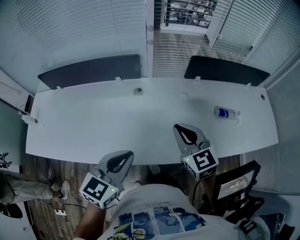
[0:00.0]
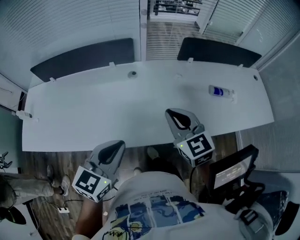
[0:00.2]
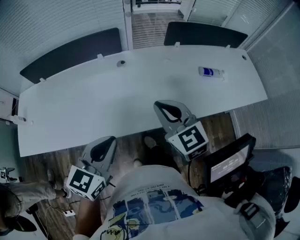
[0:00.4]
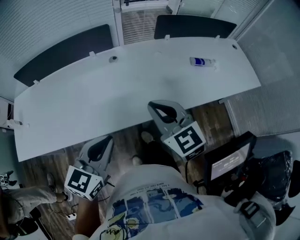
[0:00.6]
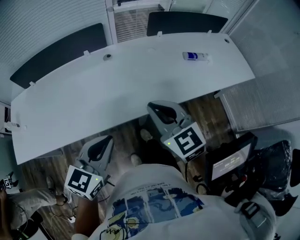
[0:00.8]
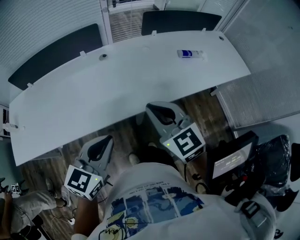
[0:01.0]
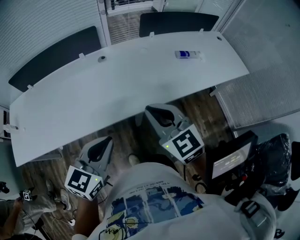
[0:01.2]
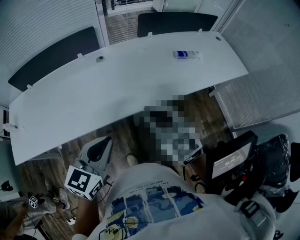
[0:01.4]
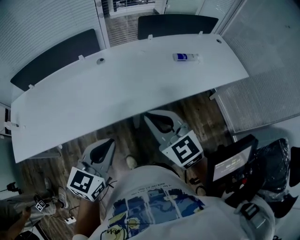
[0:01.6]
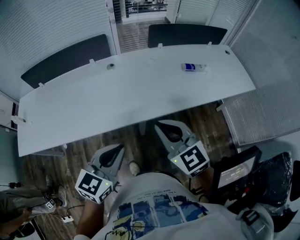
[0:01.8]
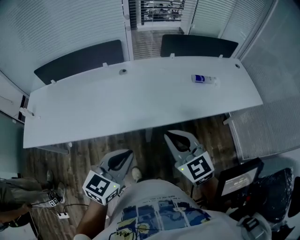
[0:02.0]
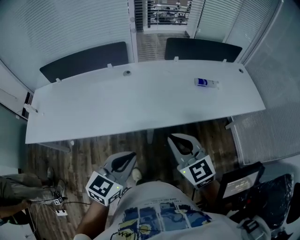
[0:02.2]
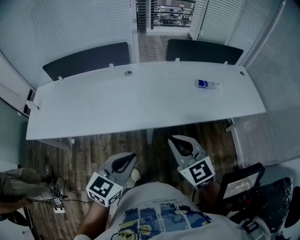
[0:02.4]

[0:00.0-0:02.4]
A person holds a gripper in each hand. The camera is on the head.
0:00.0 to 0:01.2: The grippers both shift backward by approximately 20 cm.
0:01.2 to 0:02.4: Both grippers travel together to the right and backward, some 10 cm.

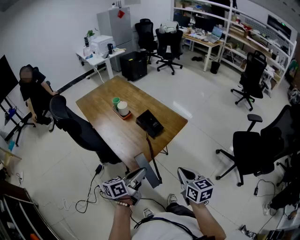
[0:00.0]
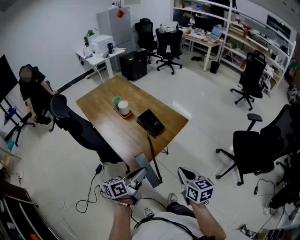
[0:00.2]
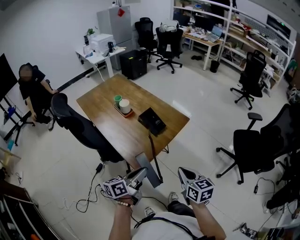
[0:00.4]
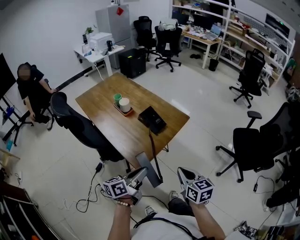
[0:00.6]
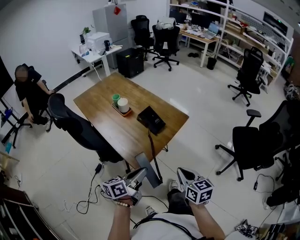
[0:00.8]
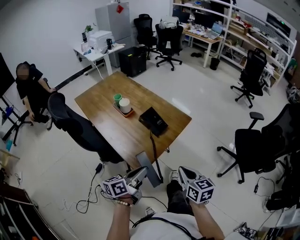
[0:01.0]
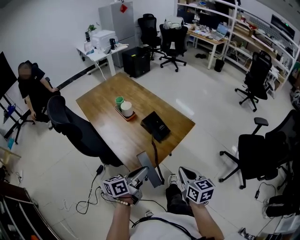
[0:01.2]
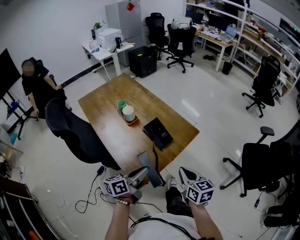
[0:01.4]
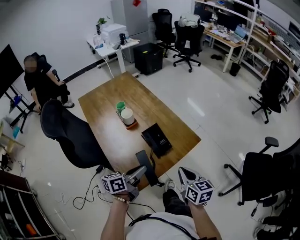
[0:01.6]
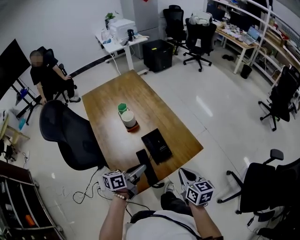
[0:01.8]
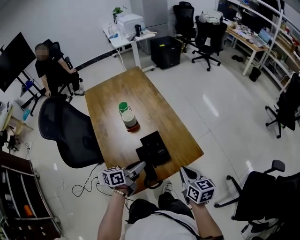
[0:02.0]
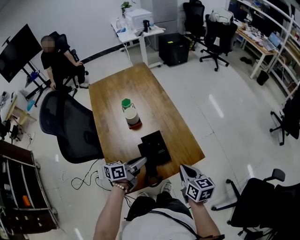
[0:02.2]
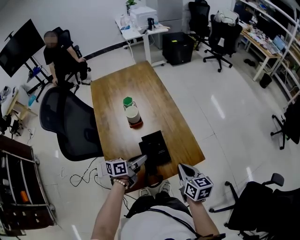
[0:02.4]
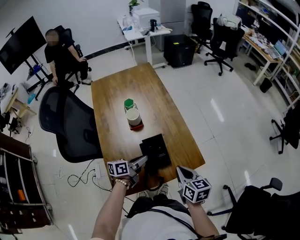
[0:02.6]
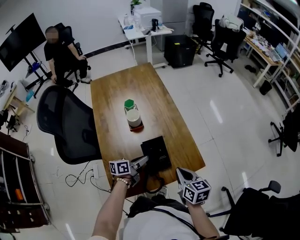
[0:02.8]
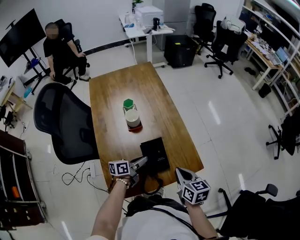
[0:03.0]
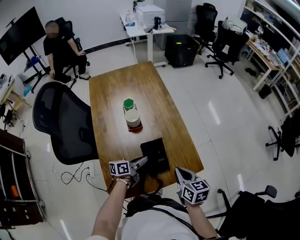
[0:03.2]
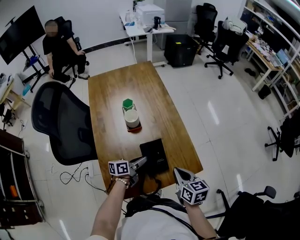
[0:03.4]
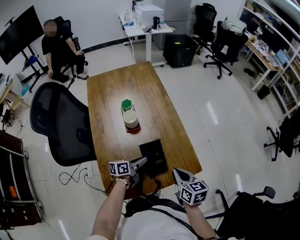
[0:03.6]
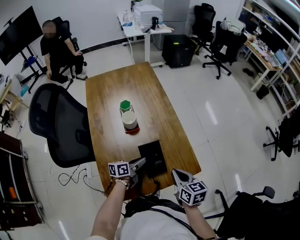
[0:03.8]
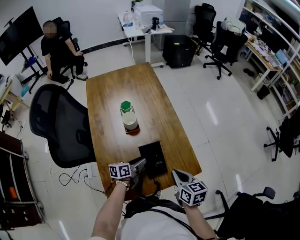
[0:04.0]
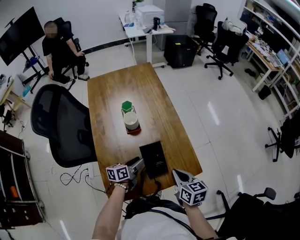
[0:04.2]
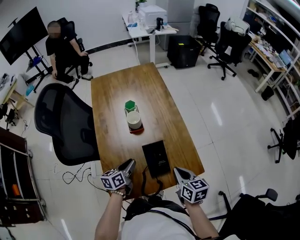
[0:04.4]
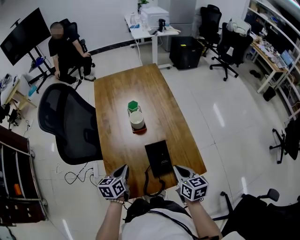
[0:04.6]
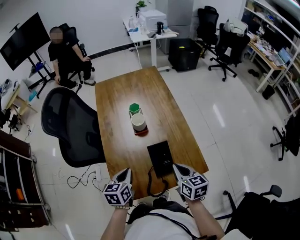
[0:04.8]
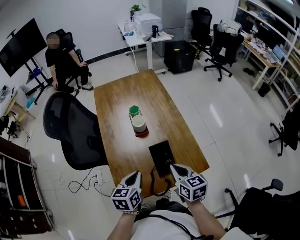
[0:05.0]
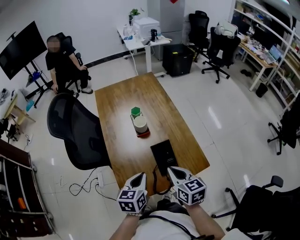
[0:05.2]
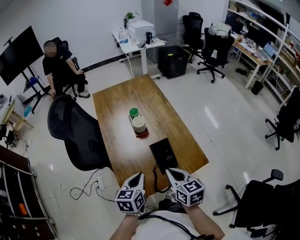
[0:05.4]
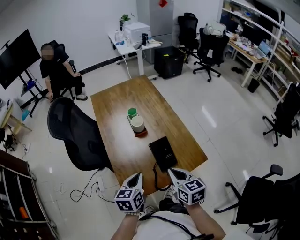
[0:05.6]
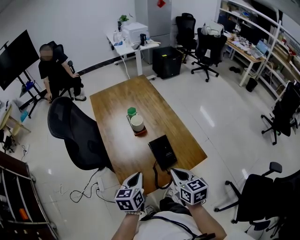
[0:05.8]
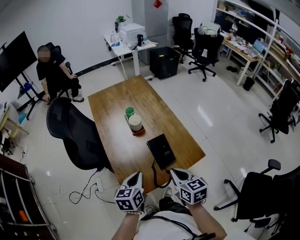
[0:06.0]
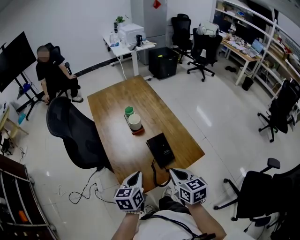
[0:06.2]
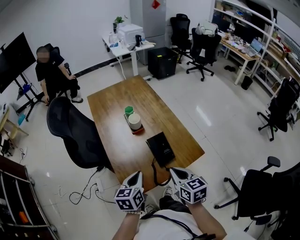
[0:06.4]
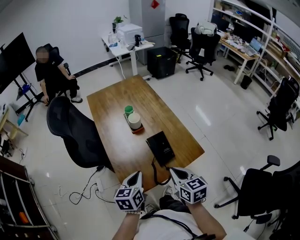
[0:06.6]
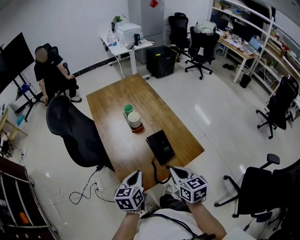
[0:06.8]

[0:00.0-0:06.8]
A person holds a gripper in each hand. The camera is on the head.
0:00.0 to 0:01.4: Both grippers travel together forward, some 10 cm.
0:01.4 to 0:02.8: The right gripper heads forward, covering some 20 cm, and swivels some 20 degrees; the left gripper heads forward and downward, covering roughly 25 cm.
0:02.8 to 0:04.0: The left gripper shifts by about 5 cm, and opens.
0:04.0 to 0:05.4: The right gripper heads to the left and upward, covering about 15 cm; the left gripper goes some 25 cm upward, backward and to the left, turns by roughly 30 degrees, and closes its fingers.
0:05.4 to 0:06.8: The right gripper shifts approximately 5 cm backward.

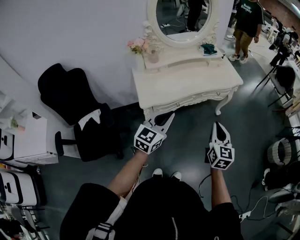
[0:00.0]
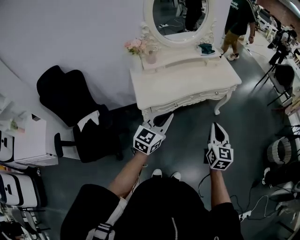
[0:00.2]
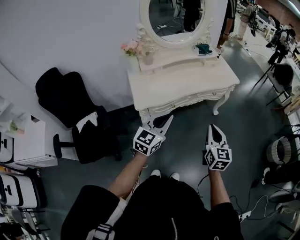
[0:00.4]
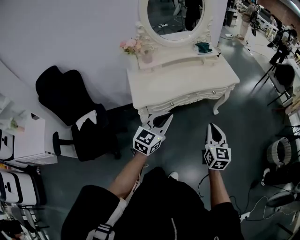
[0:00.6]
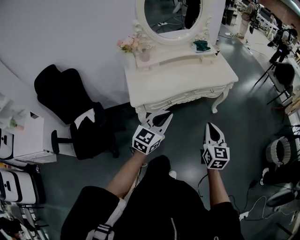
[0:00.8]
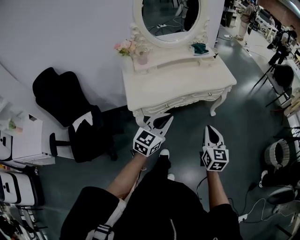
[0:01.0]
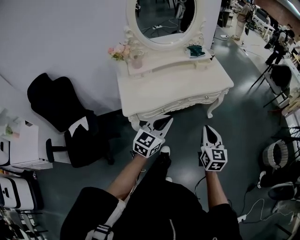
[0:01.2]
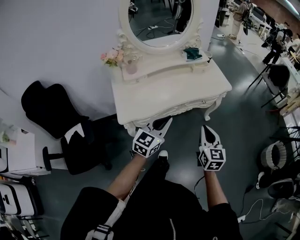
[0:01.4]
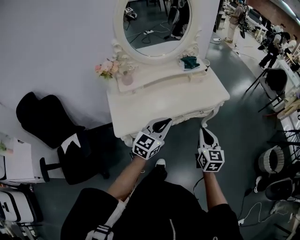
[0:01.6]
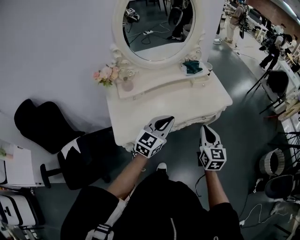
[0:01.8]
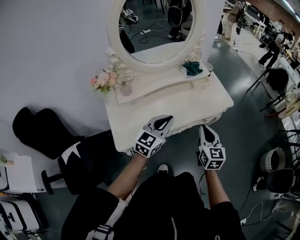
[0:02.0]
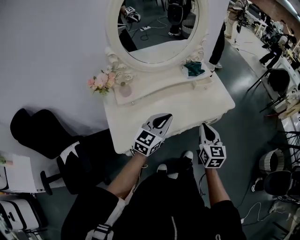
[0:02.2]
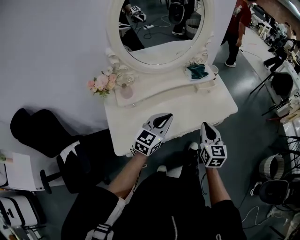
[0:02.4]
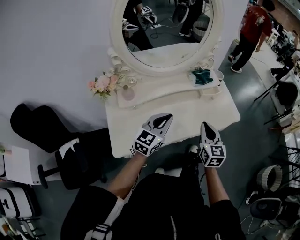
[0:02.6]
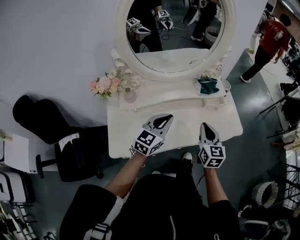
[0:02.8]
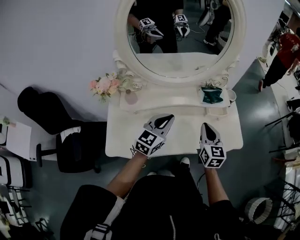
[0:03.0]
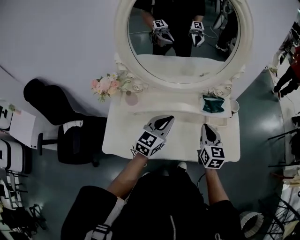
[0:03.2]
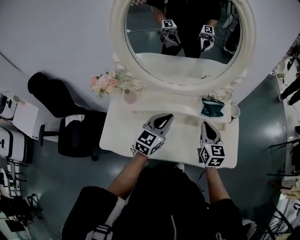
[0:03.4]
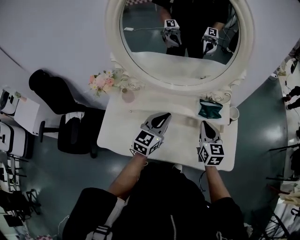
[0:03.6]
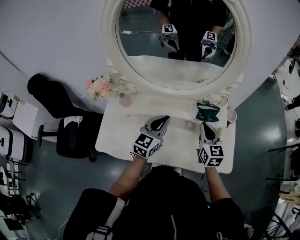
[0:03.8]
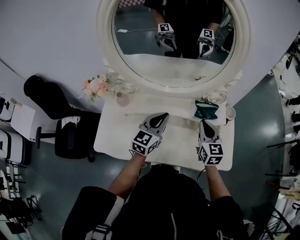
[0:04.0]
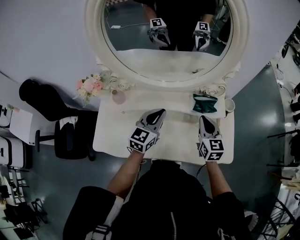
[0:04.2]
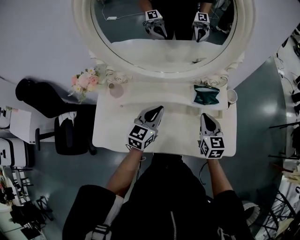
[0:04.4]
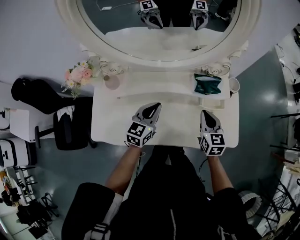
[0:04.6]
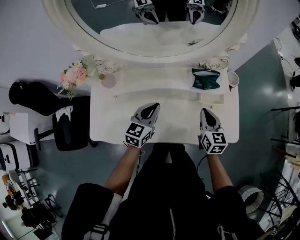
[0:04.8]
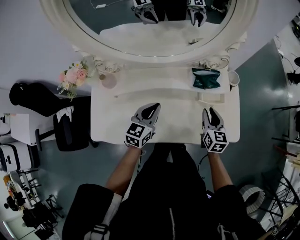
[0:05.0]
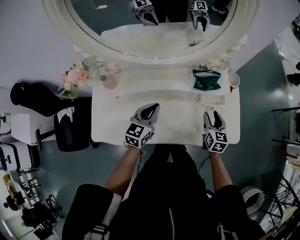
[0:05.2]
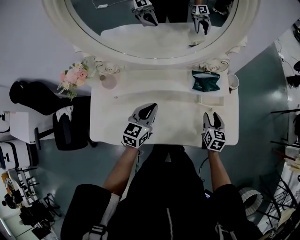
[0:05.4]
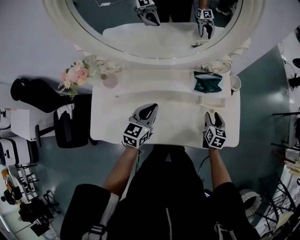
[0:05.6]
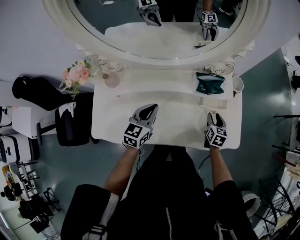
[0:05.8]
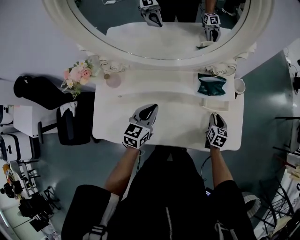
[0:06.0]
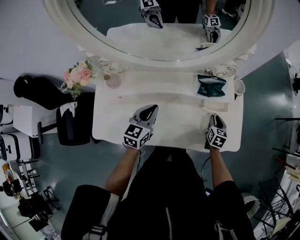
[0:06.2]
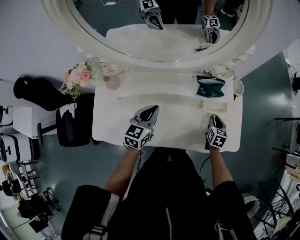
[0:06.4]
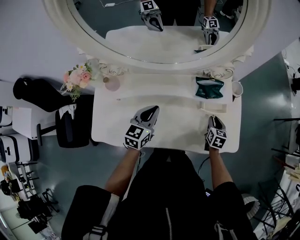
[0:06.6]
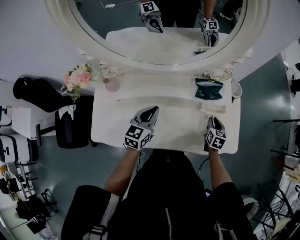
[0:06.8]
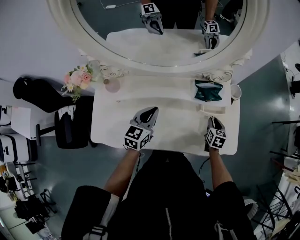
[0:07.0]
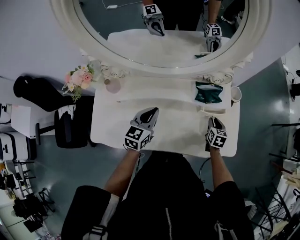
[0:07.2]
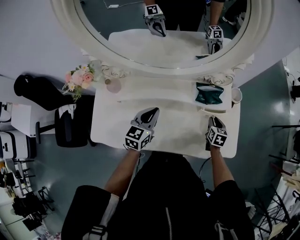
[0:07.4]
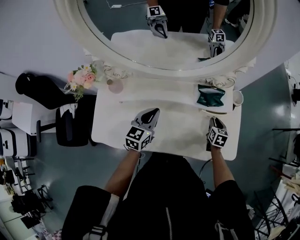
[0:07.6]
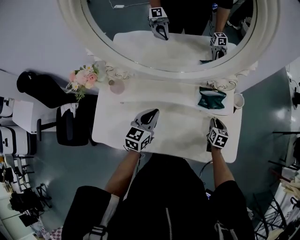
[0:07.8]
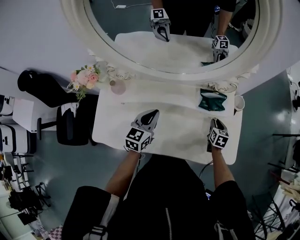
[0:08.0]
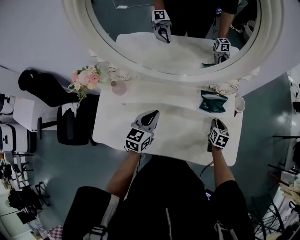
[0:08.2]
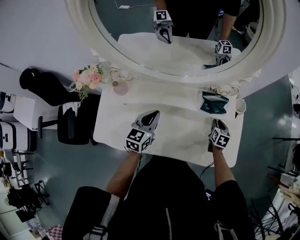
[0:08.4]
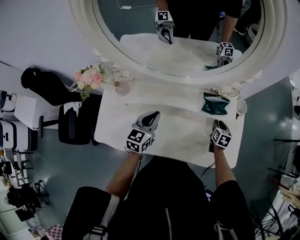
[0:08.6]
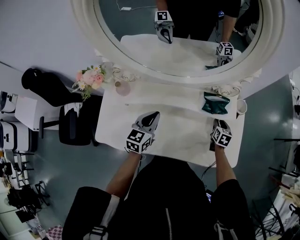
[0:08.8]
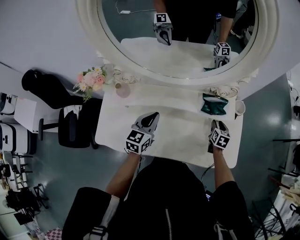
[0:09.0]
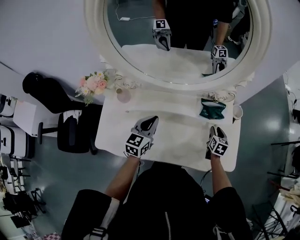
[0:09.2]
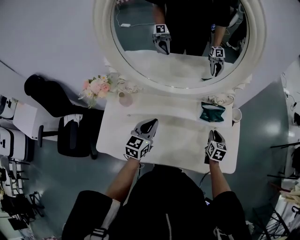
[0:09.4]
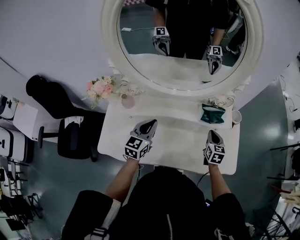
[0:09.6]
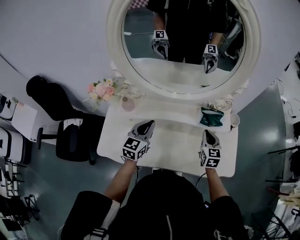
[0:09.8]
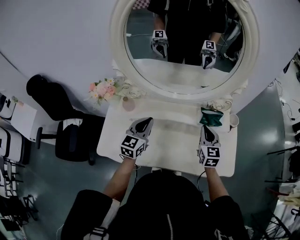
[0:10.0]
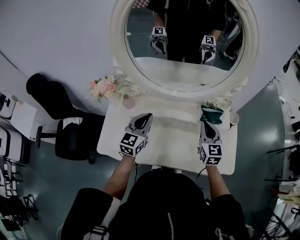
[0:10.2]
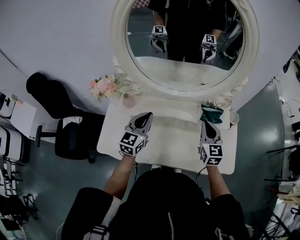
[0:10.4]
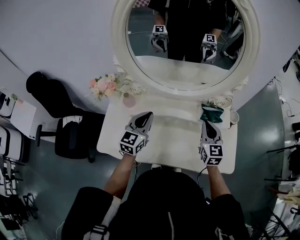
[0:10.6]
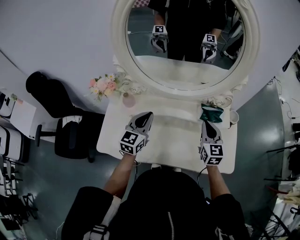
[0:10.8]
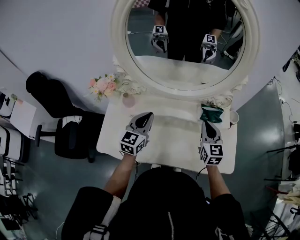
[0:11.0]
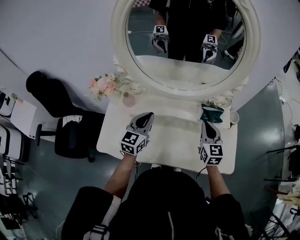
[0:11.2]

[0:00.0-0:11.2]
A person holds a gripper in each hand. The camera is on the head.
0:00.0 to 0:01.6: Both grippers move forward, some 20 cm.
0:01.6 to 0:03.2: The left gripper moves some 35 cm, and rotates about 20 degrees; the right gripper shifts by approximately 40 cm, and turns by about 20 degrees.
0:03.2 to 0:04.8: The left gripper is displaced downward by some 10 cm. The right gripper is displaced downward and to the right by about 15 cm.
0:04.8 to 0:06.4: The right gripper is displaced downward and to the right by about 15 cm, swivels about 20 degrees, and opens its fingers.
0:06.4 to 0:08.0: The right gripper heads forward, covering approximately 5 cm.
0:08.0 to 0:09.6: The left gripper ends up some 5 cm from where it was. Meanwhile the right gripper moves upward and to the left, approximately 10 cm, and closes its fingers.
0:09.6 to 0:11.2: The right gripper heads upward and to the left, covering about 15 cm, and swivels roughly 20 degrees.

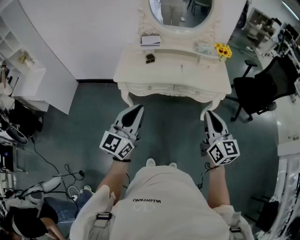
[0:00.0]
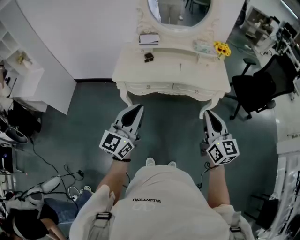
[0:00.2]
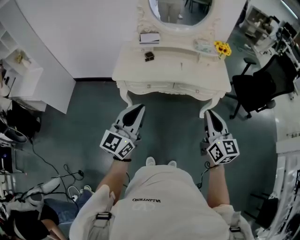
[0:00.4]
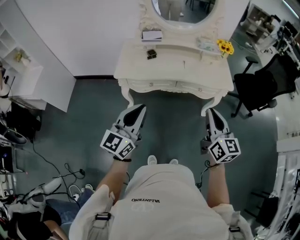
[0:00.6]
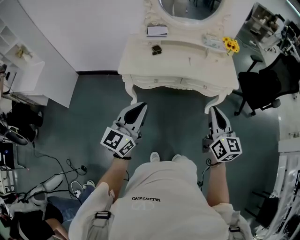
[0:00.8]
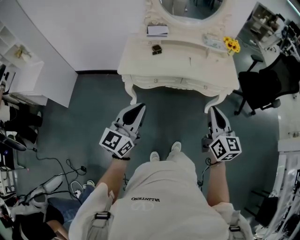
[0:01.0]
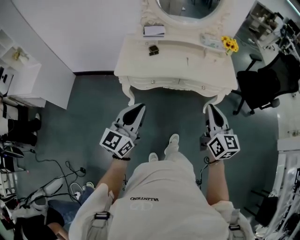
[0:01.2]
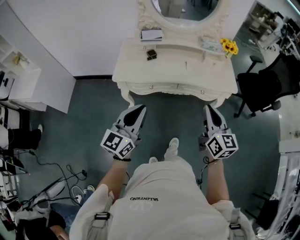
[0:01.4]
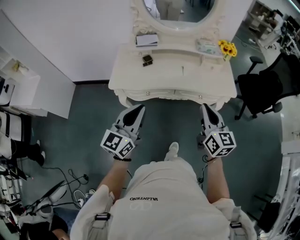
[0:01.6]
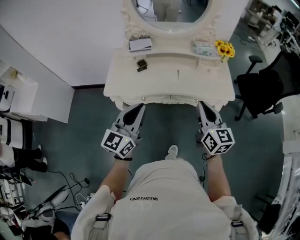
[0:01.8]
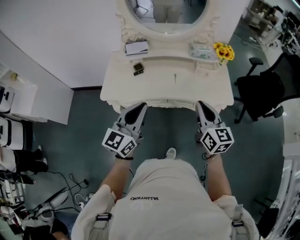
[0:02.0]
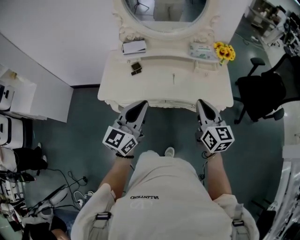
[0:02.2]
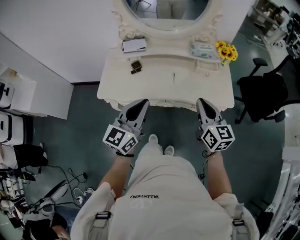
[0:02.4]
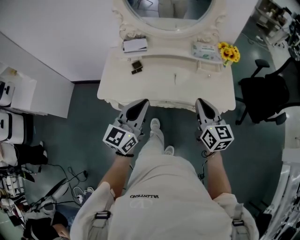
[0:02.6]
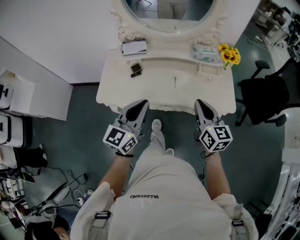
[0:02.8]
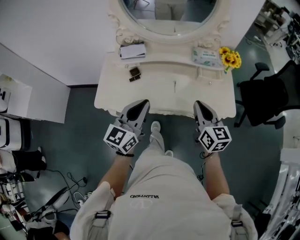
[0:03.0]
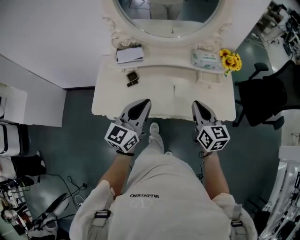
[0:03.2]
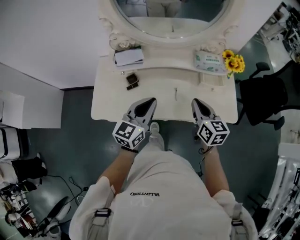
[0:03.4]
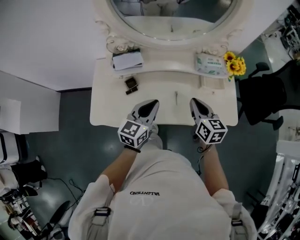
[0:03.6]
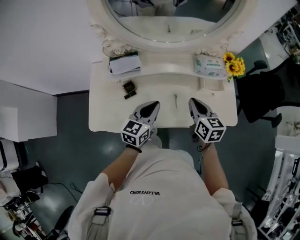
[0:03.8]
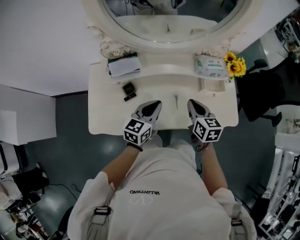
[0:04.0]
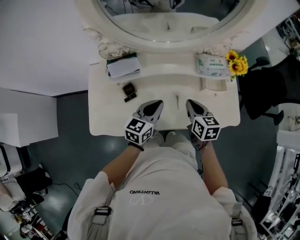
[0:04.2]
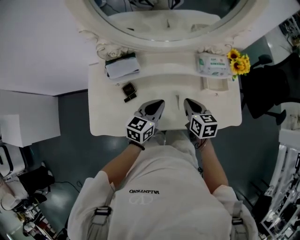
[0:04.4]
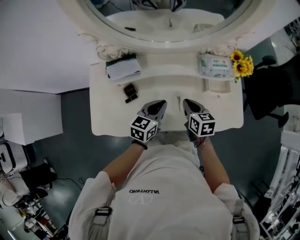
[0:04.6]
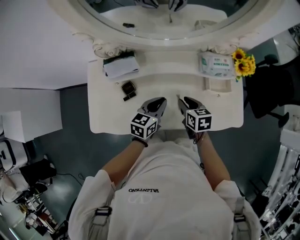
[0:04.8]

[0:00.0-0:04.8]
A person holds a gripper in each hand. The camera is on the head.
0:00.0 to 0:01.6: The two grippers go approximately 15 cm forward.
0:01.6 to 0:03.2: The grippers both shift forward by approximately 25 cm.
0:03.2 to 0:04.8: The left gripper travels downward and forward by roughly 25 cm, and turns by some 30 degrees. The right gripper shifts some 25 cm downward, forward and to the left, and changes its angle by roughly 30 degrees.
